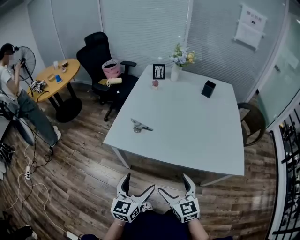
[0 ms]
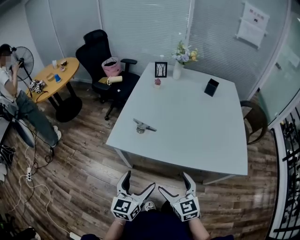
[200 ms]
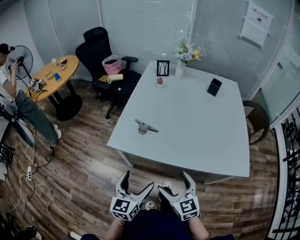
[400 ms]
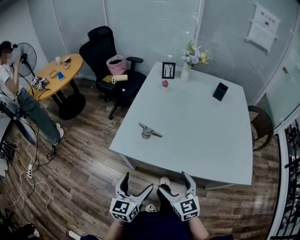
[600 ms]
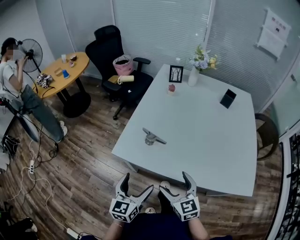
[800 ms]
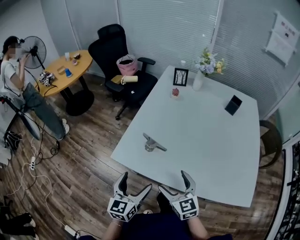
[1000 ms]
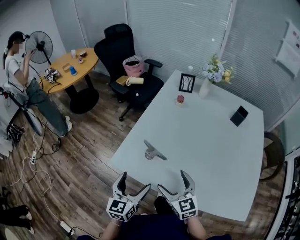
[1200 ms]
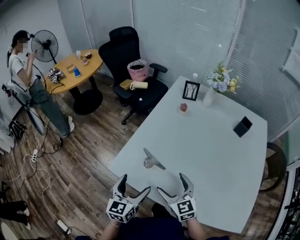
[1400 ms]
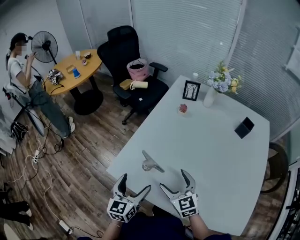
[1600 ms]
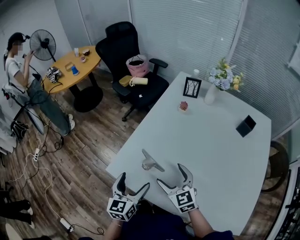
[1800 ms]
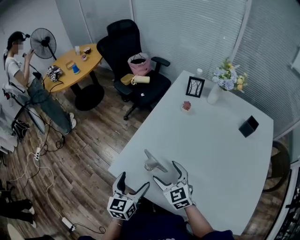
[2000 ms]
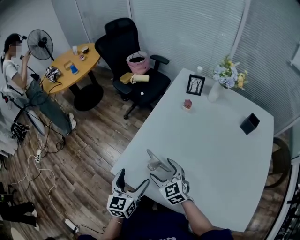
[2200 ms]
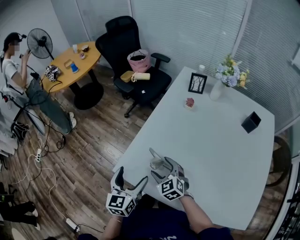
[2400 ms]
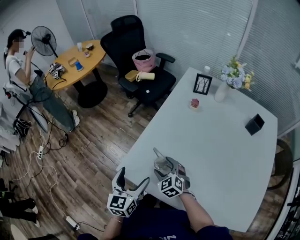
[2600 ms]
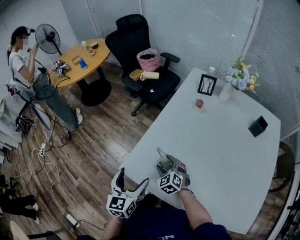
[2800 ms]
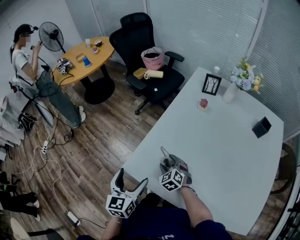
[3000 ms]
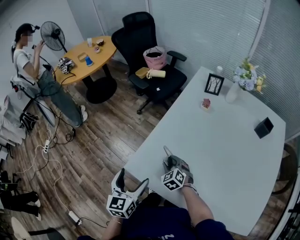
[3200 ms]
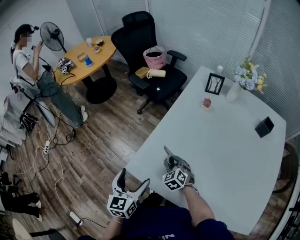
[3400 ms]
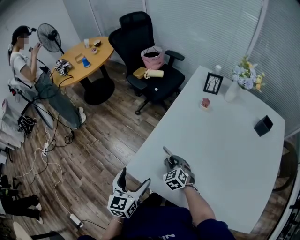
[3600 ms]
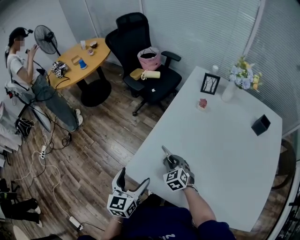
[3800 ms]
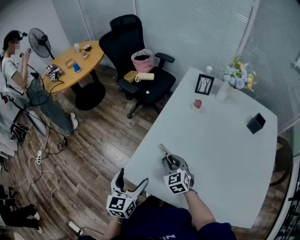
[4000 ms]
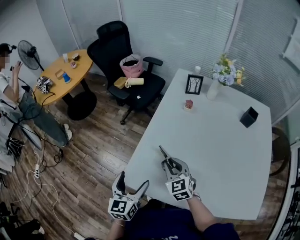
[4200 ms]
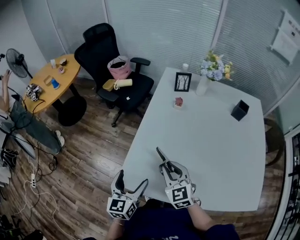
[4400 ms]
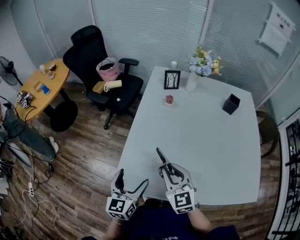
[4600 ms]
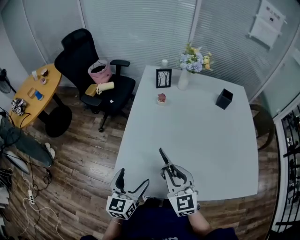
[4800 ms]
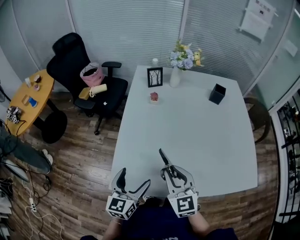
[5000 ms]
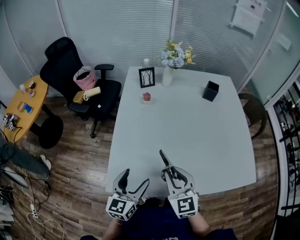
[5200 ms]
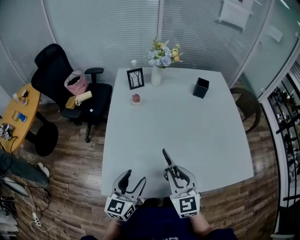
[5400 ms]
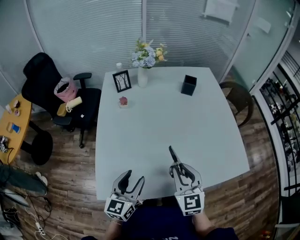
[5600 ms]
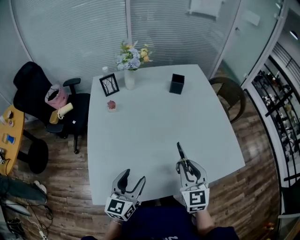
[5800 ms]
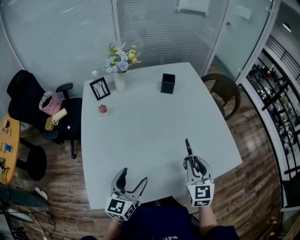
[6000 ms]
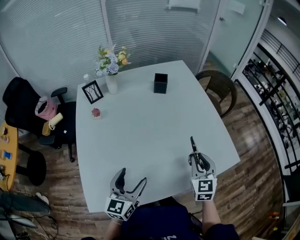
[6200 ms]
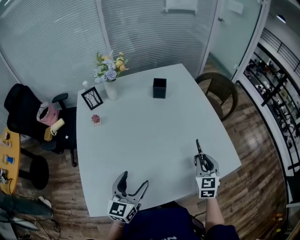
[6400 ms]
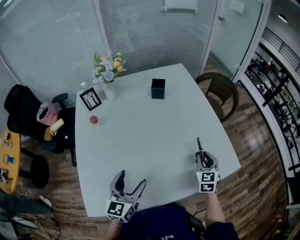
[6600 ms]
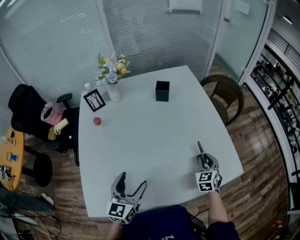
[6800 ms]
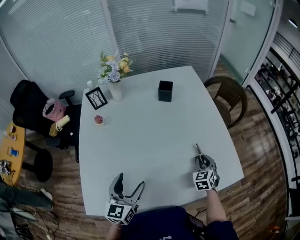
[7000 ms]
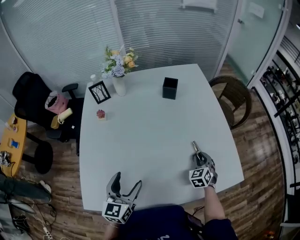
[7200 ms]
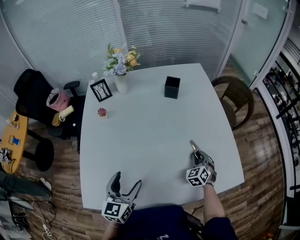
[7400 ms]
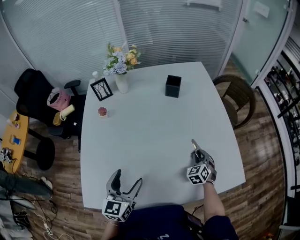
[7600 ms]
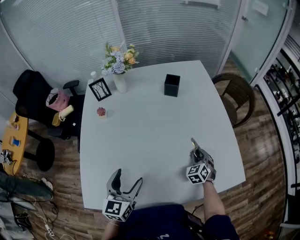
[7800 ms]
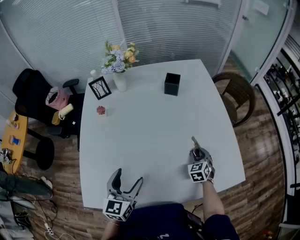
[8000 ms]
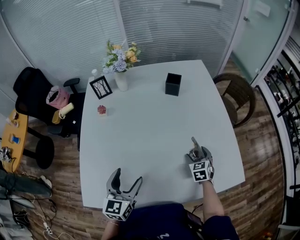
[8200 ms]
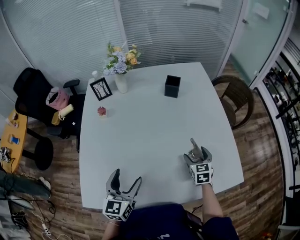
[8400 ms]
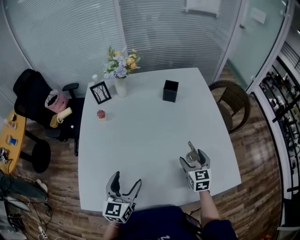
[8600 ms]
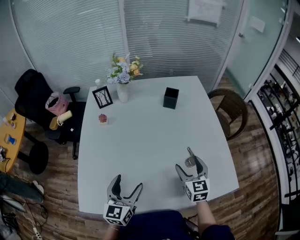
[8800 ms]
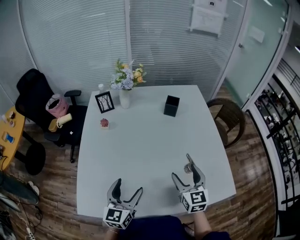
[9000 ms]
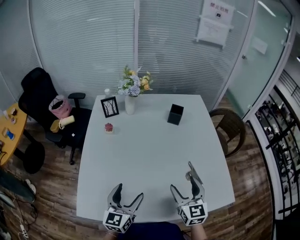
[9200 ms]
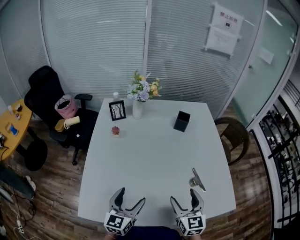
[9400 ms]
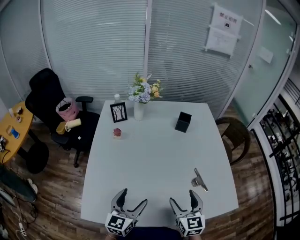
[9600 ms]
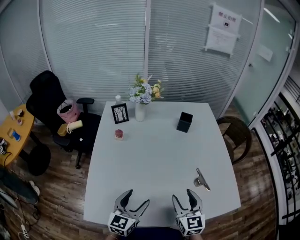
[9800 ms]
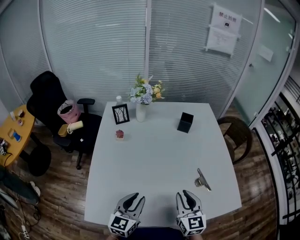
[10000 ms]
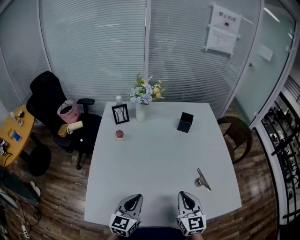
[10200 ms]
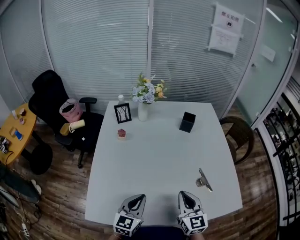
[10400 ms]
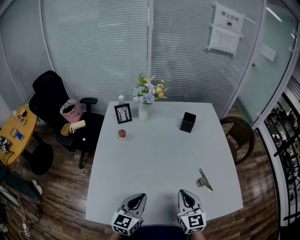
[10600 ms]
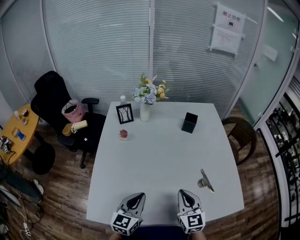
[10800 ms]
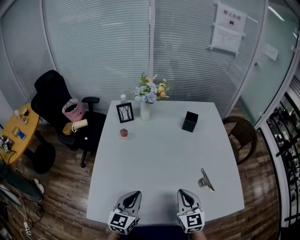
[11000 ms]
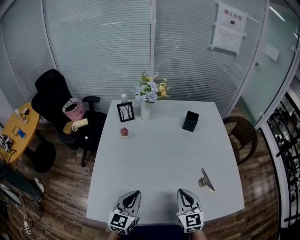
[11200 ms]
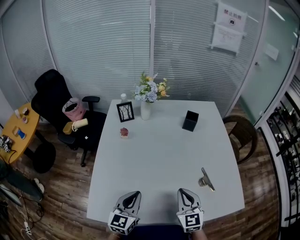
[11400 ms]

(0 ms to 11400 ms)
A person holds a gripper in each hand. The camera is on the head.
0 ms - 1400 ms: The grippers both shift forward by some 25 cm.
1400 ms - 2800 ms: The left gripper heads to the left and forward, covering roughly 10 cm. The right gripper goes some 20 cm forward, downward and to the left, and turns by roughly 30 degrees.
2800 ms - 4200 ms: The right gripper moves upward, roughly 10 cm, turns by roughly 20 degrees, and closes its fingers.
4200 ms - 5600 ms: The right gripper ends up approximately 25 cm from where it was, and changes its angle by approximately 40 degrees. Meanwhile the left gripper ends up some 15 cm from where it was, rotates approximately 40 degrees, and closes its fingers.
5600 ms - 7200 ms: The right gripper shifts some 35 cm to the right, forward and downward, and turns by some 30 degrees. The left gripper travels forward and to the right by some 15 cm.
7200 ms - 8600 ms: The right gripper goes about 10 cm upward and to the left, rotates some 30 degrees, and opens.
8600 ms - 10000 ms: The left gripper closes its fingers. The right gripper heads to the left, upward and backward, covering some 20 cm, and closes its fingers.
10000 ms - 11400 ms: There are only small adjustments of the grippers.

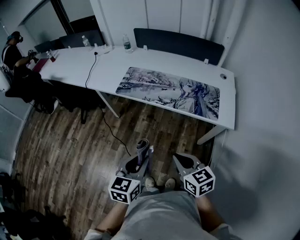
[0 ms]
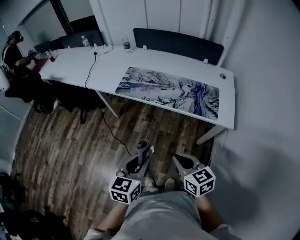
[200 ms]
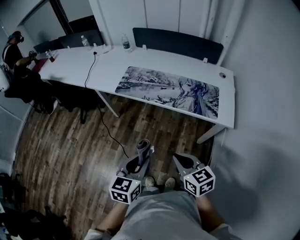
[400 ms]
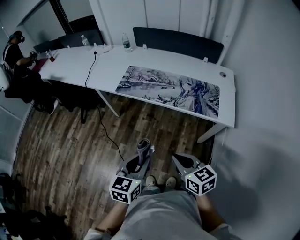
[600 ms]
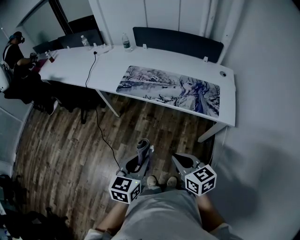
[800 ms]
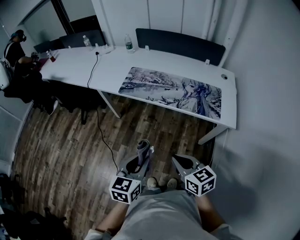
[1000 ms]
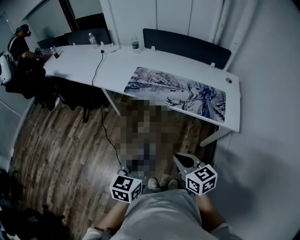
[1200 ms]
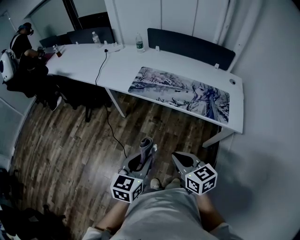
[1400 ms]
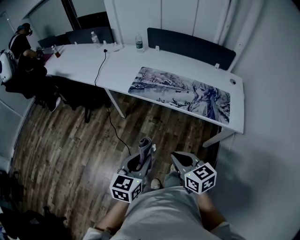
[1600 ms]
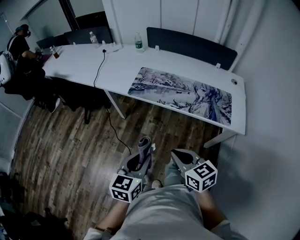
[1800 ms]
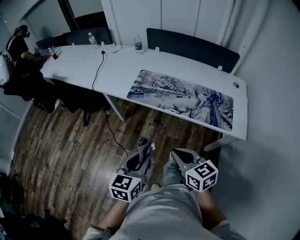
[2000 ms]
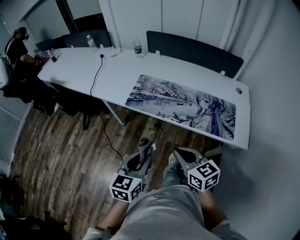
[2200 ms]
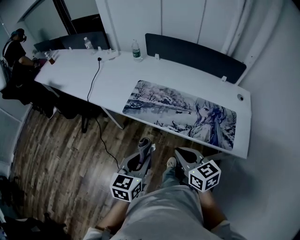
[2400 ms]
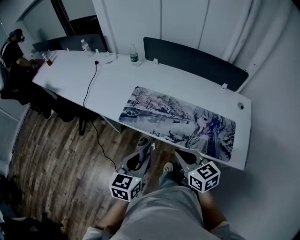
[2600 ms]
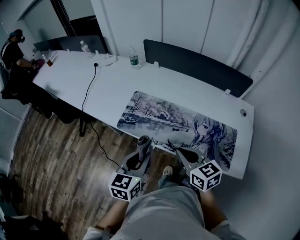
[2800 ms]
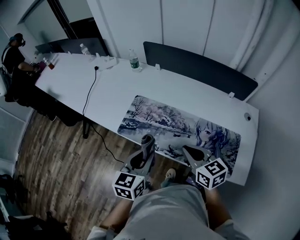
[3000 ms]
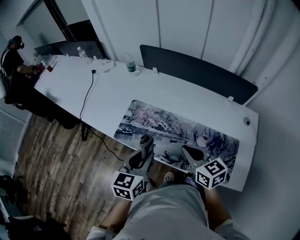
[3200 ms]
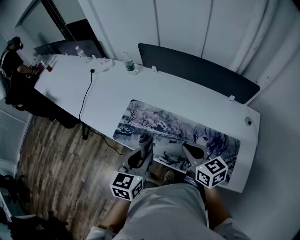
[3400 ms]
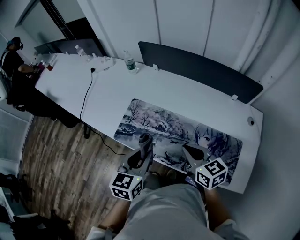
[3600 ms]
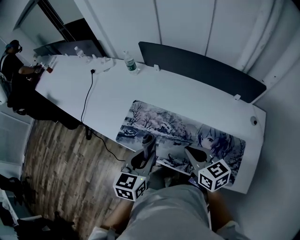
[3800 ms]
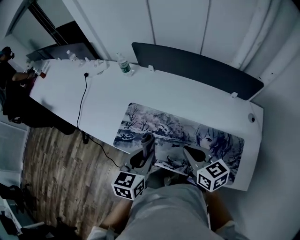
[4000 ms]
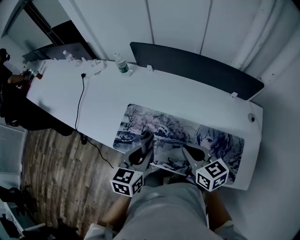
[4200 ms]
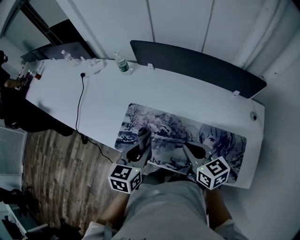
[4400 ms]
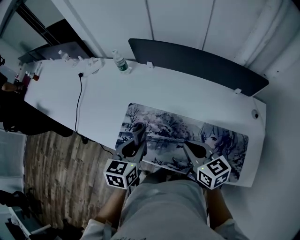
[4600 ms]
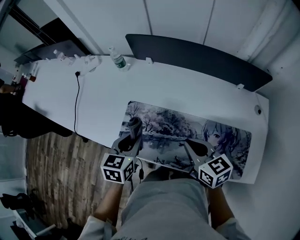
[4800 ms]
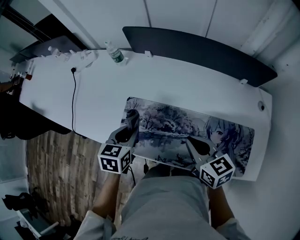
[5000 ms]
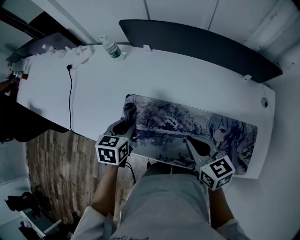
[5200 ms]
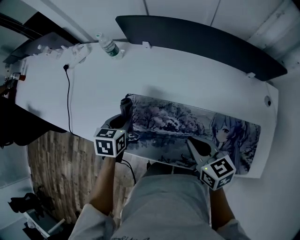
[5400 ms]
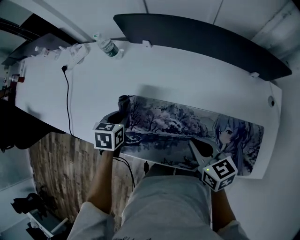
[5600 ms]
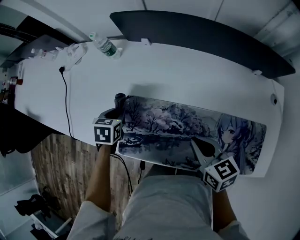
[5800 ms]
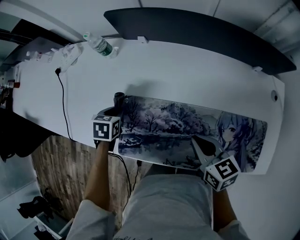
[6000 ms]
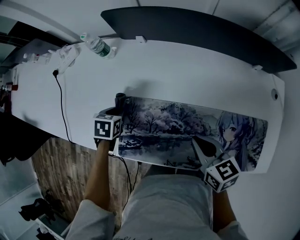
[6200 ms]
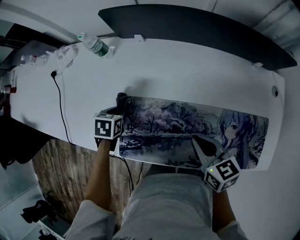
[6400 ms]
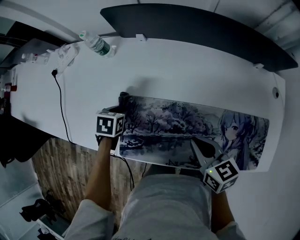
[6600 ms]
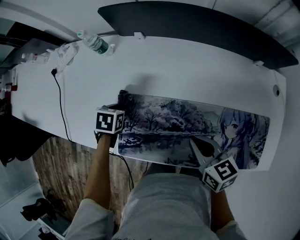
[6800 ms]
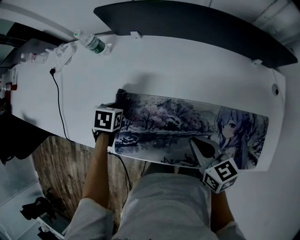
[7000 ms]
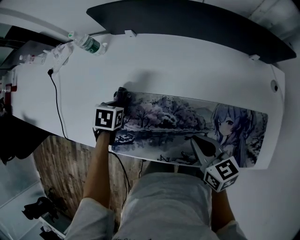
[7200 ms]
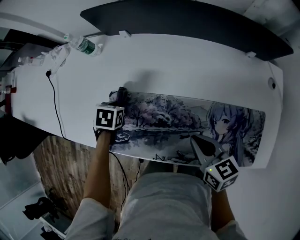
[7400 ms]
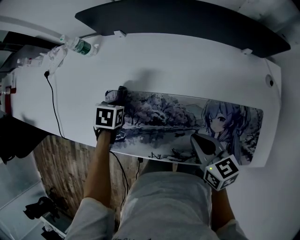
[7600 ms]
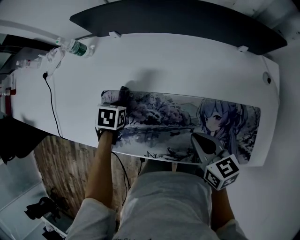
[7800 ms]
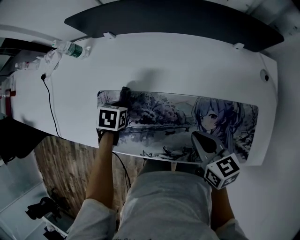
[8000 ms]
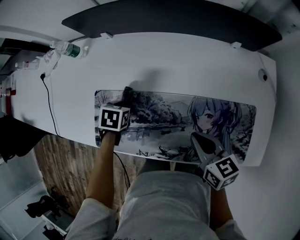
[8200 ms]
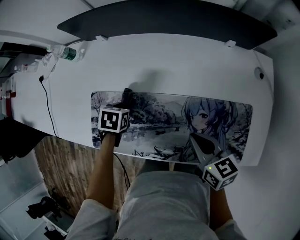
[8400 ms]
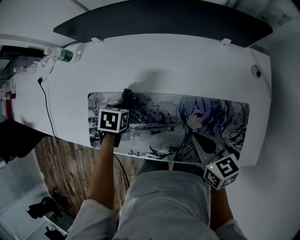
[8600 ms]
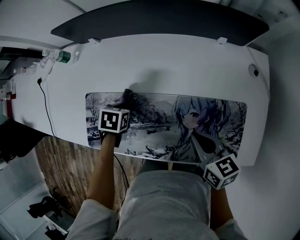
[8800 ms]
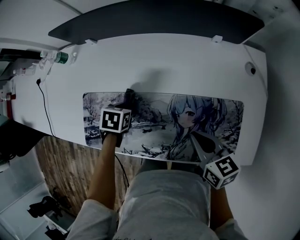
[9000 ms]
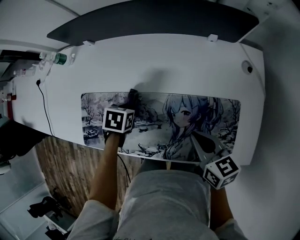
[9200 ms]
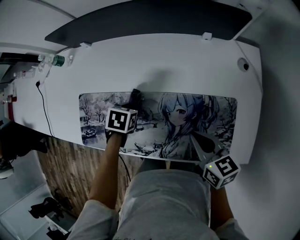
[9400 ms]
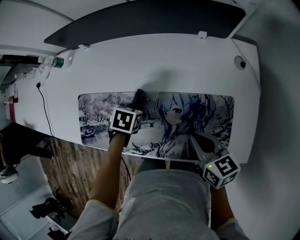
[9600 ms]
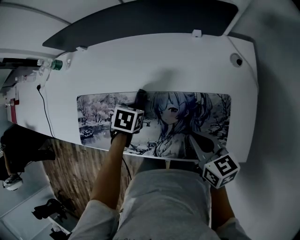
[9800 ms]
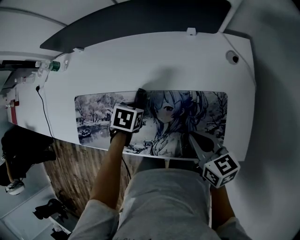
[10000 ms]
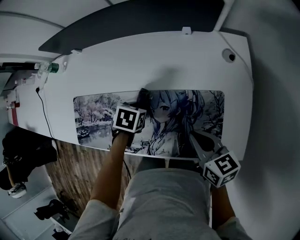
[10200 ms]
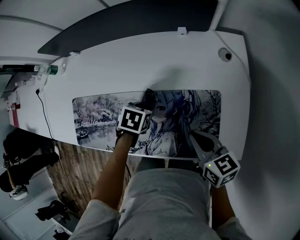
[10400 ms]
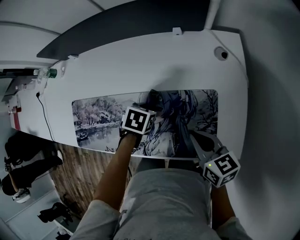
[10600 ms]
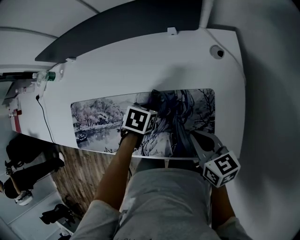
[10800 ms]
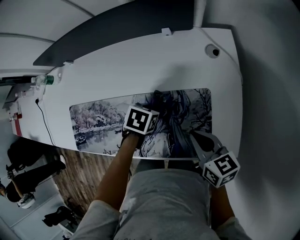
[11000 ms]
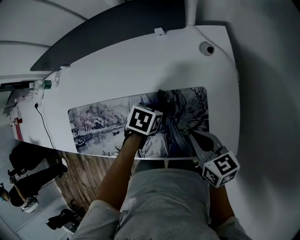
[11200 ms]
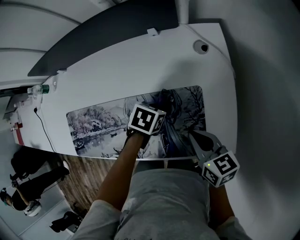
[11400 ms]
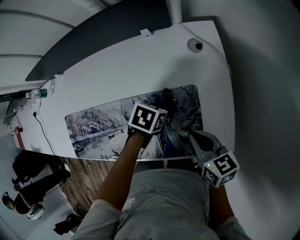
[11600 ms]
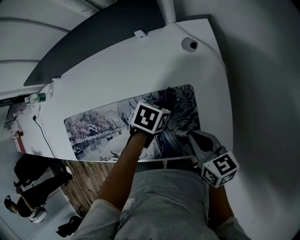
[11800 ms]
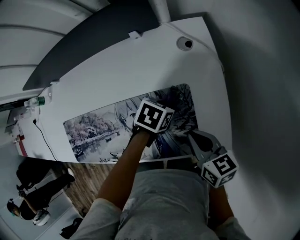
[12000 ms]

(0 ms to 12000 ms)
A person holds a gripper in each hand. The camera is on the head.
0 ms - 1600 ms: The grippers both shift to the left by approximately 10 cm.
1600 ms - 3000 ms: The left gripper travels forward by some 35 cm. The right gripper travels forward and to the right by some 40 cm.
3000 ms - 4400 ms: The two grippers go roughly 10 cm forward.
4400 ms - 6000 ms: The left gripper goes some 30 cm forward, downward and to the left, and tips its fingers downward by approximately 30 degrees. Meanwhile the right gripper shifts some 10 cm downward and forward.
6000 ms - 7600 ms: Both grippers move to the right, some 10 cm.
7600 ms - 9000 ms: The two grippers go some 15 cm to the right.
9000 ms - 10400 ms: The left gripper goes some 20 cm to the right, while the right gripper shifts approximately 10 cm to the right.
10400 ms - 12000 ms: The right gripper ends up roughly 10 cm from where it was. The left gripper shifts by approximately 25 cm, and rotates roughly 20 degrees.
